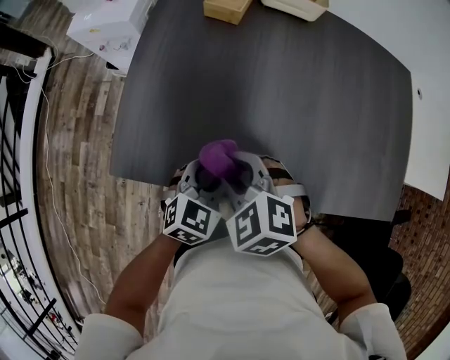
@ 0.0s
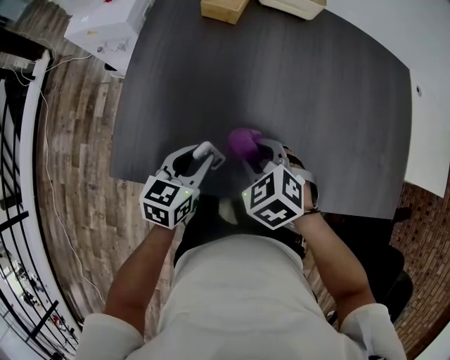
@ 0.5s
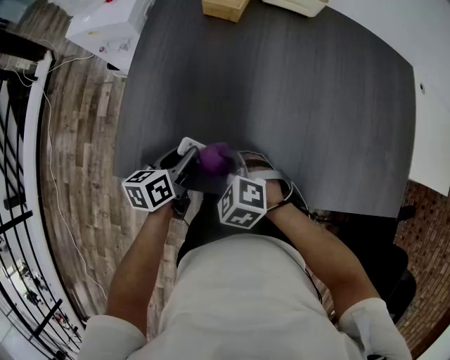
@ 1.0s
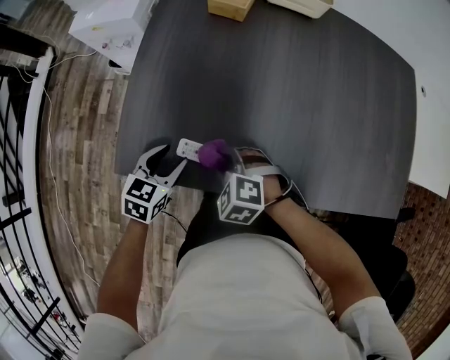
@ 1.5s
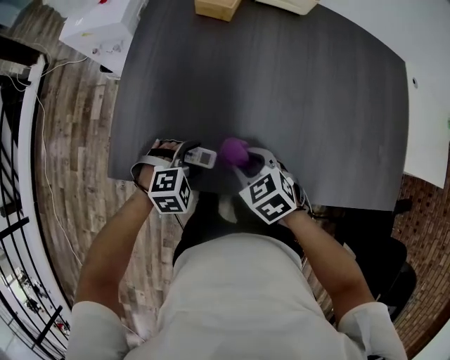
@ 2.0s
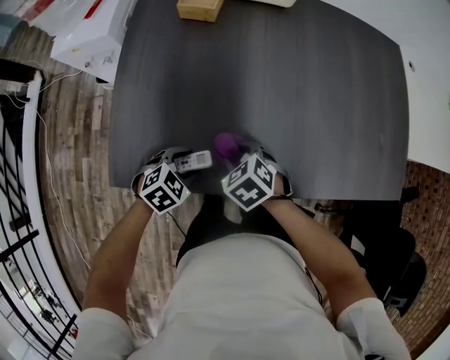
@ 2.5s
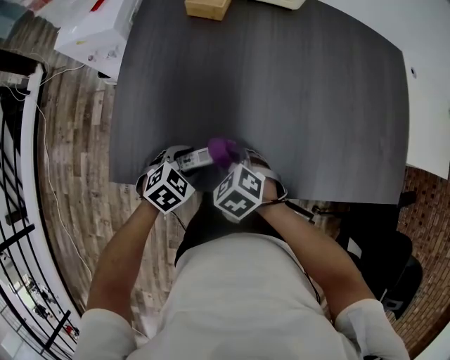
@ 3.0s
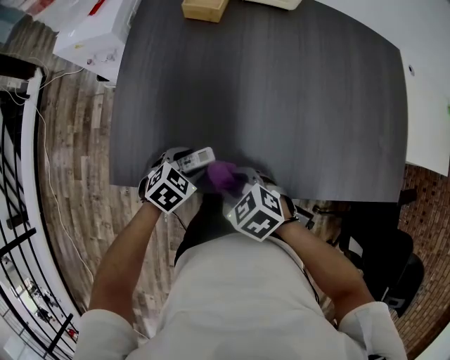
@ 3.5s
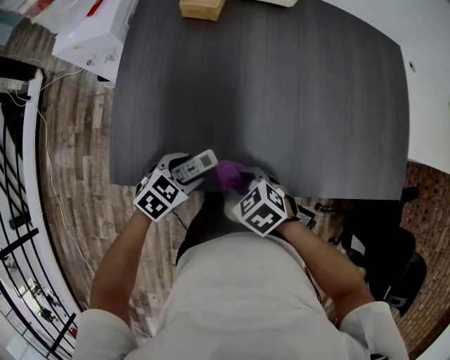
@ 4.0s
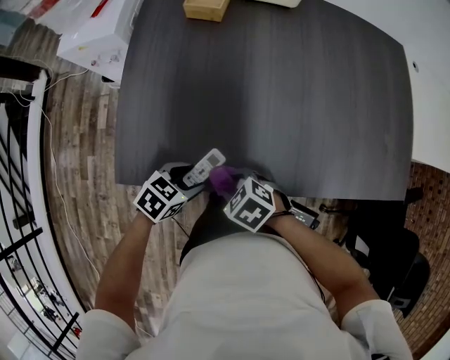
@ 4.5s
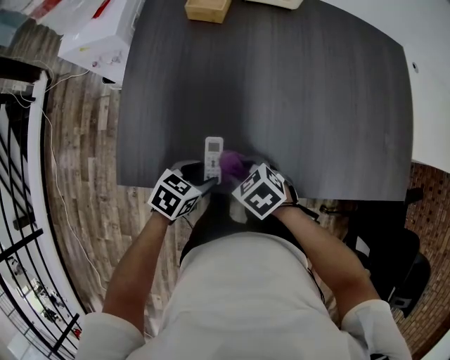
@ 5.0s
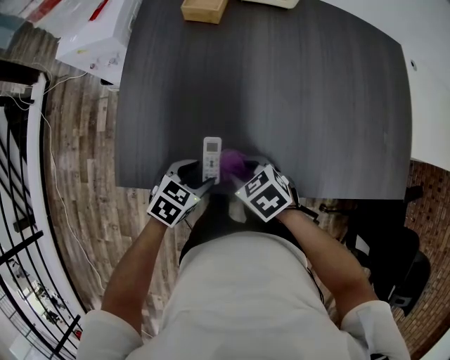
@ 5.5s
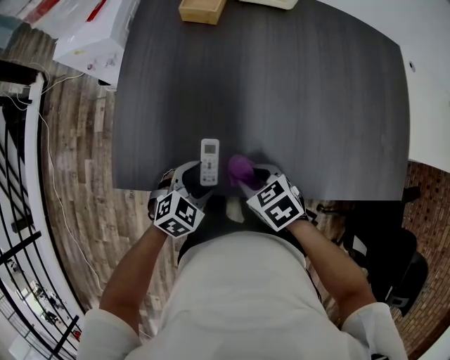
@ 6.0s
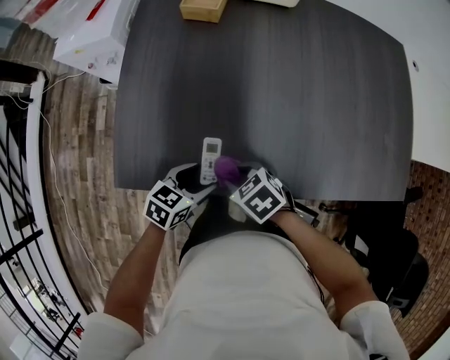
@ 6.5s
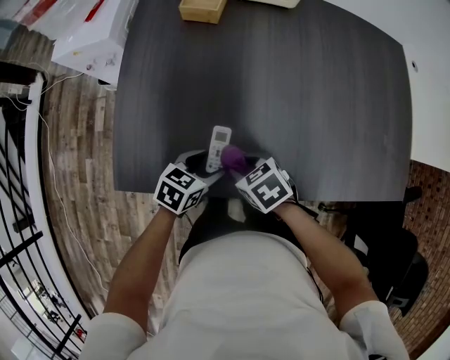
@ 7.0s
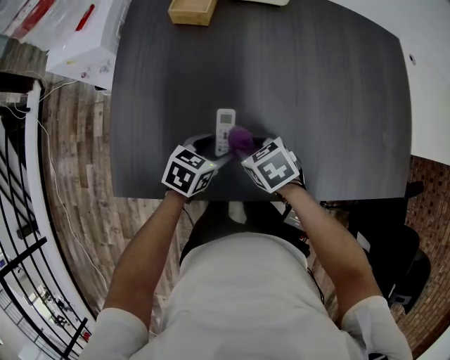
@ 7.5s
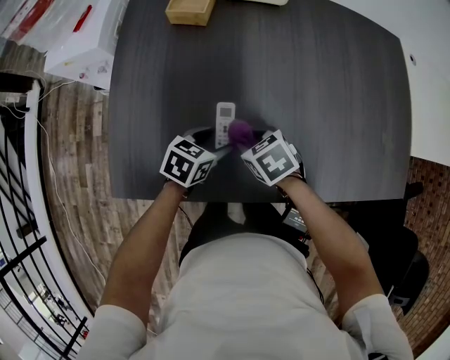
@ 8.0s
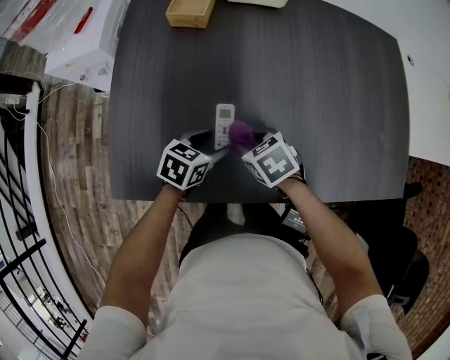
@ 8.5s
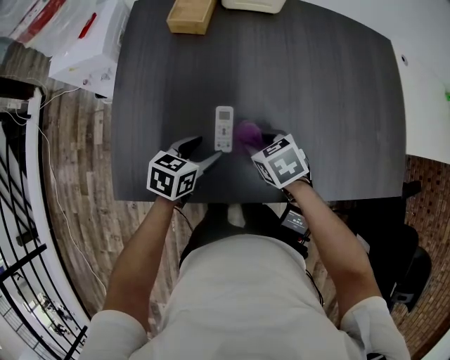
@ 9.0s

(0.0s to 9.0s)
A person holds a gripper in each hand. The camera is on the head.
0.0s - 2.0s: The right gripper moves downward, some 10 cm, and changes its angle by roughly 20 degrees. The left gripper heads downward and to the left, covering approximately 10 cm, changes its angle by some 50 degrees, and opens up.
2.0s - 4.5s: The right gripper shifts by approximately 10 cm; the left gripper twists approximately 40 degrees counterclockwise, seen from behind.
4.5s - 7.0s: The left gripper changes place by roughly 10 cm. The right gripper shifts by roughly 10 cm.
7.0s - 9.0s: The right gripper moves approximately 10 cm. The left gripper ends up some 5 cm from where it was.

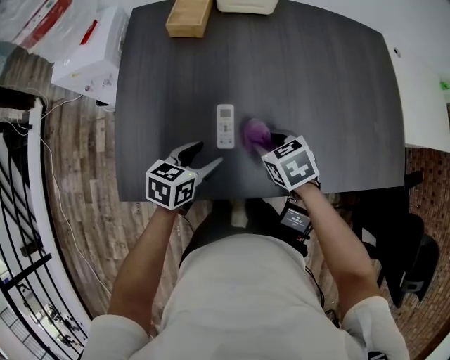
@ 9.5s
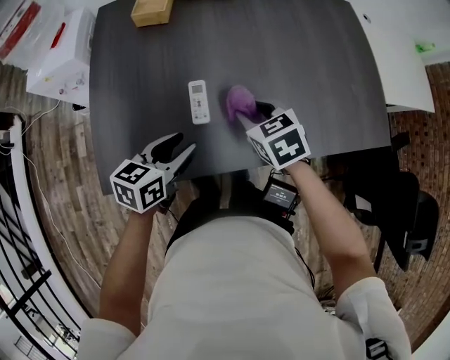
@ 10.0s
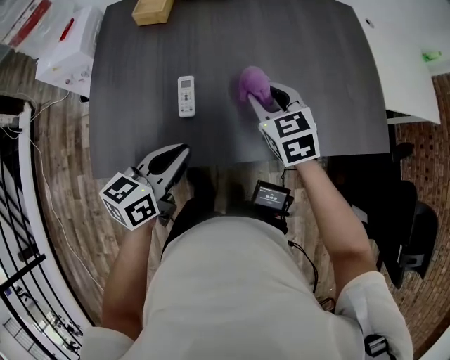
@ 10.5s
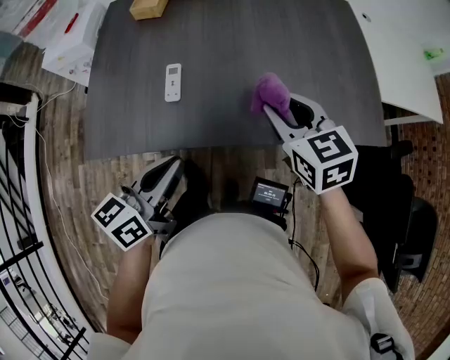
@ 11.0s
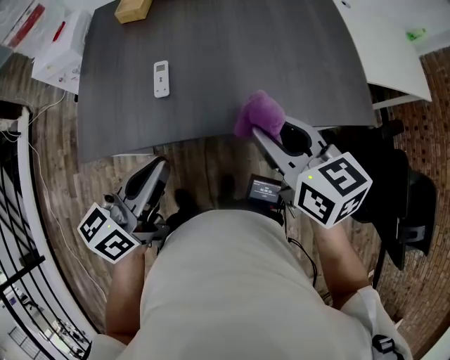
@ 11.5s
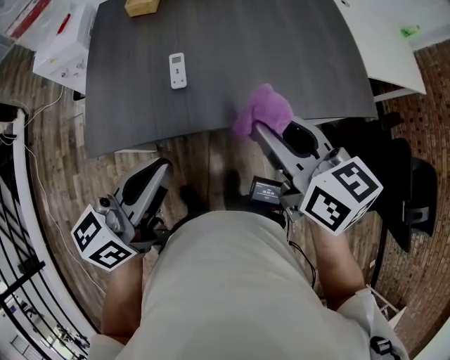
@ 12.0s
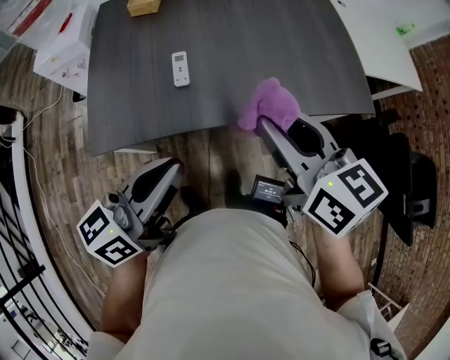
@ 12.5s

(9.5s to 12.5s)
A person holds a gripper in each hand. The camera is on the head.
9.5s - 11.0s: The right gripper is displaced to the right and upward by roughly 20 cm, and swivels some 30 degrees; the left gripper is displaced backward, upward and to the right by some 25 cm, turns by approximately 30 degrees, and closes.
11.0s - 12.5s: The right gripper shifts roughly 20 cm backward, upward and to the left, and swivels some 20 degrees. The left gripper travels upward, backward and to the left by about 10 cm.

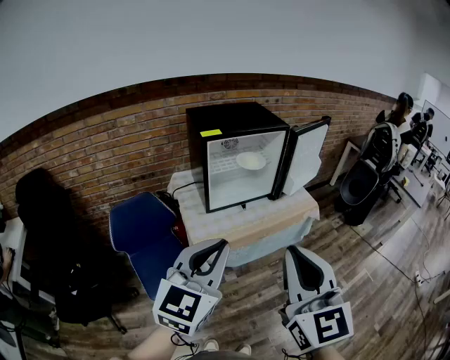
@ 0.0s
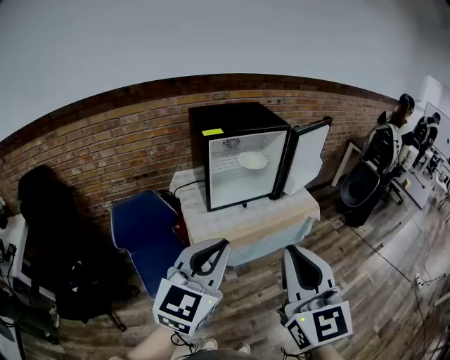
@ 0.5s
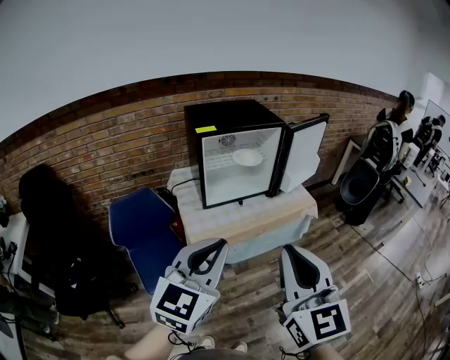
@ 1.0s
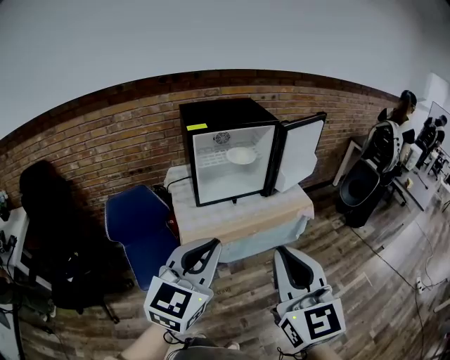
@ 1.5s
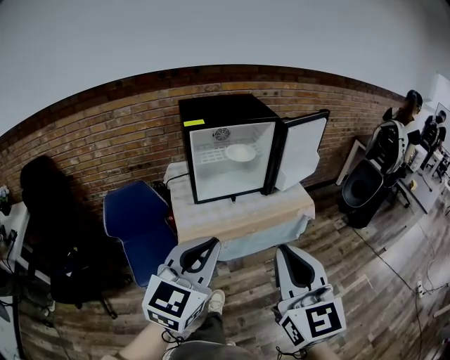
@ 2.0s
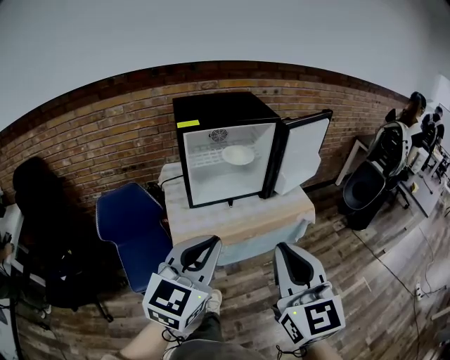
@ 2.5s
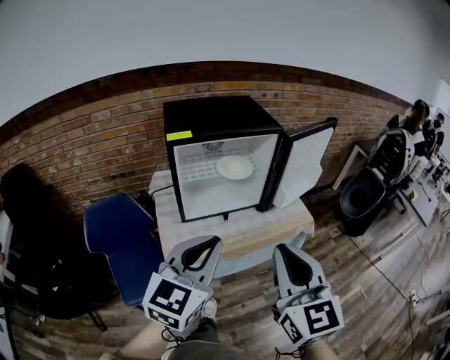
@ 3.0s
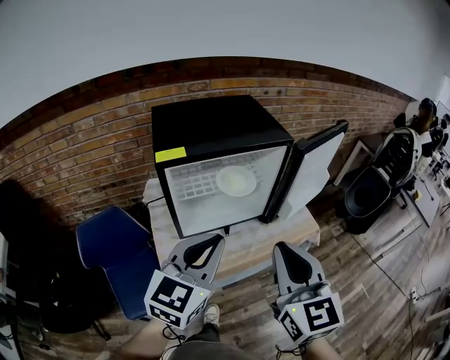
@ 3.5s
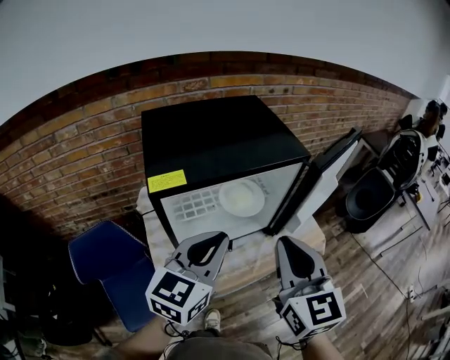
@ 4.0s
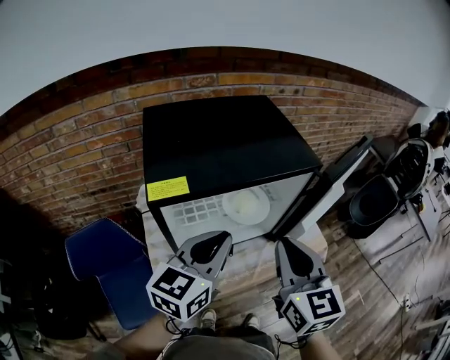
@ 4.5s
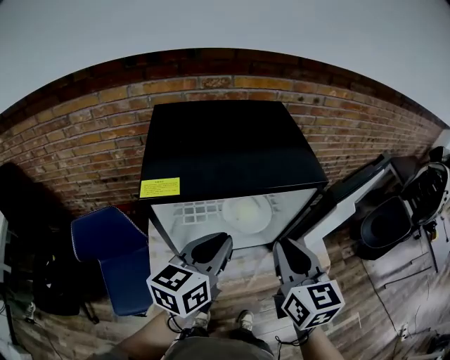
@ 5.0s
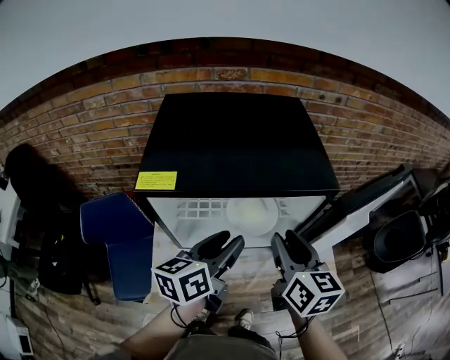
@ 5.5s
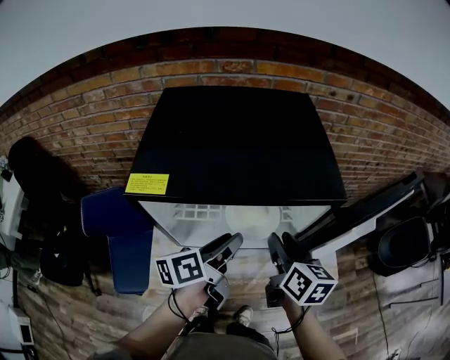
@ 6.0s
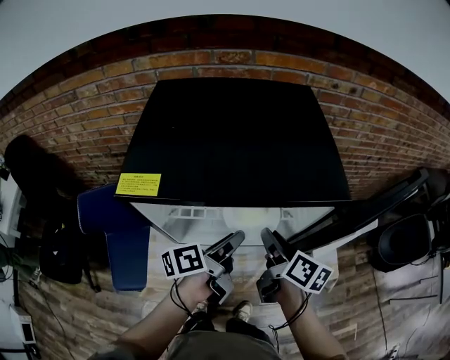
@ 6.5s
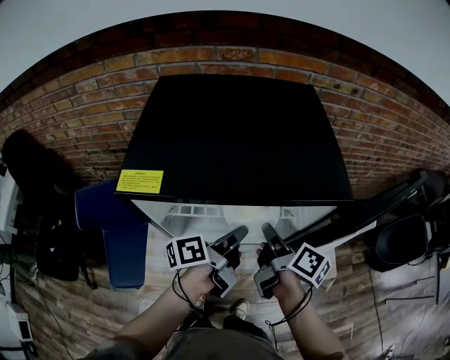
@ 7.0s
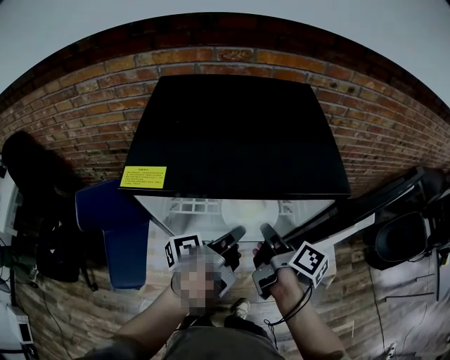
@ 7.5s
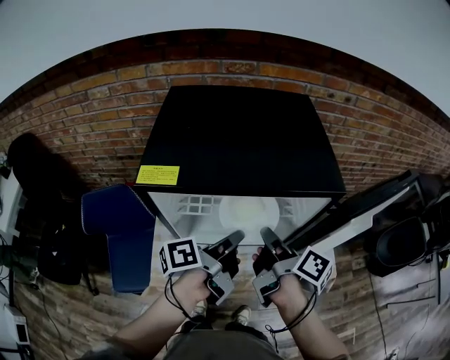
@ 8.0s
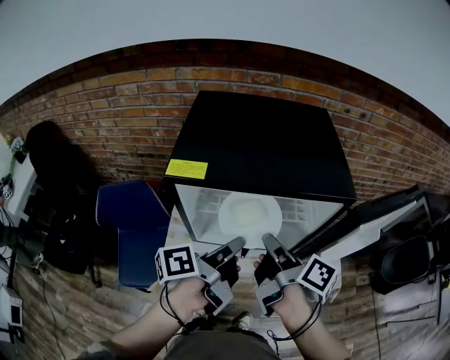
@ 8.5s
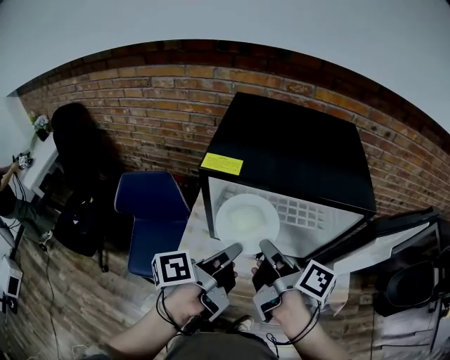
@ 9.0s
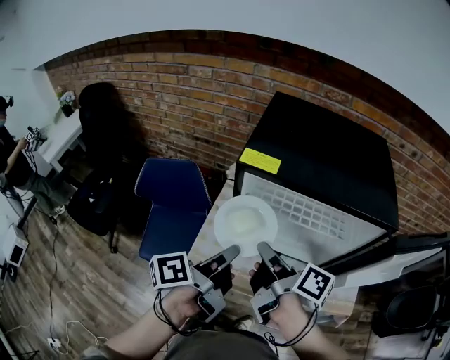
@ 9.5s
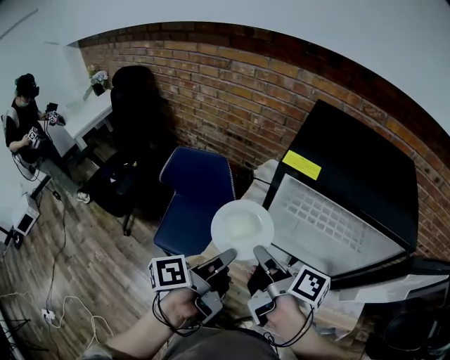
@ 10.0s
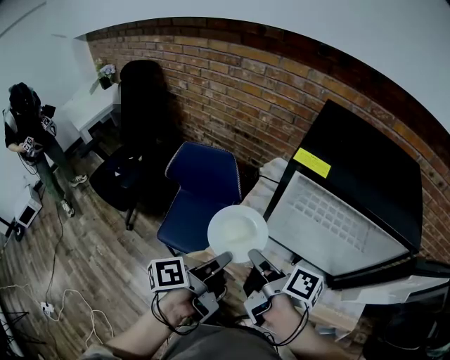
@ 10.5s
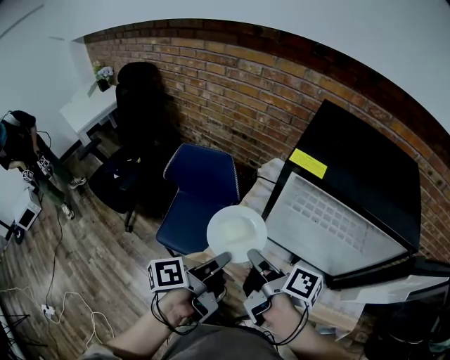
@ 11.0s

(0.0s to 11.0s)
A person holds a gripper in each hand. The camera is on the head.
0.0s - 2.0s: Both grippers travel together to the right, some 10 cm.
2.0s - 3.5s: The two grippers go some 25 cm forward.
3.5s - 5.5s: The right gripper is displaced forward by approximately 25 cm, rotates some 30 degrees, and opens its fingers. The left gripper heads forward and downward, covering some 20 cm, twists roughly 40 degrees counterclockwise, seen from behind, and opens its fingers.
5.5s - 7.5s: Both grippers move downward, some 10 cm. The right gripper twists about 60 degrees clockwise, seen from behind, and closes, while the left gripper rolls counterclockwise, seen from behind, by some 40 degrees, and closes its fingers.
7.5s - 9.0s: The left gripper shifts approximately 15 cm backward, to the left and upward. The right gripper travels to the left, upward and backward by roughly 15 cm.
9.0s - 11.0s: Both grippers move to the left and downward, about 15 cm. The right gripper turns by roughly 20 degrees.

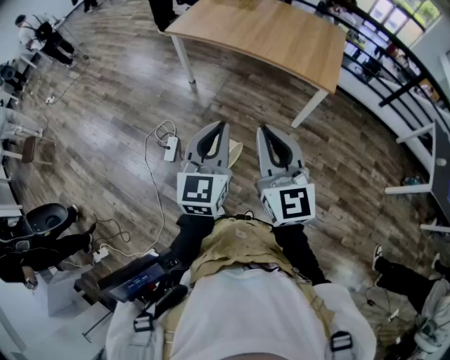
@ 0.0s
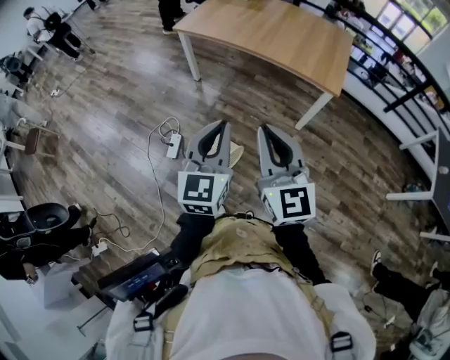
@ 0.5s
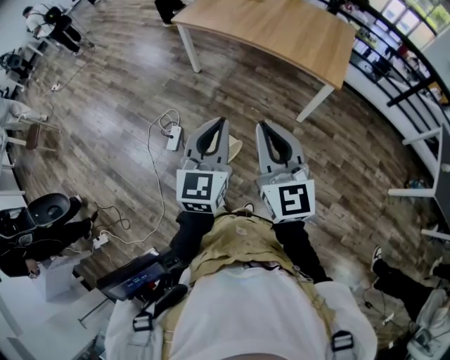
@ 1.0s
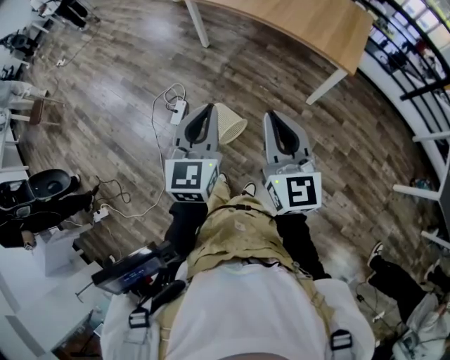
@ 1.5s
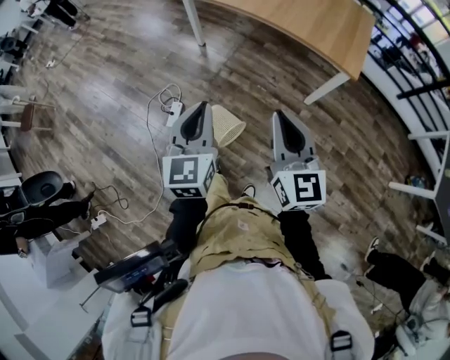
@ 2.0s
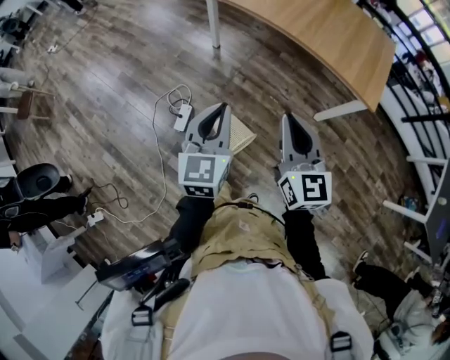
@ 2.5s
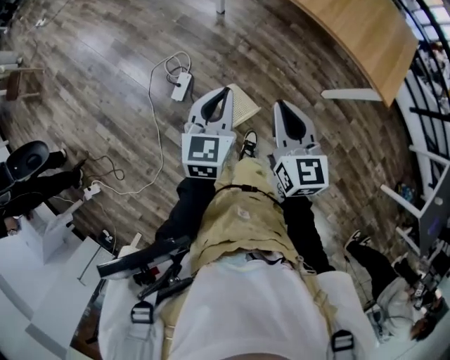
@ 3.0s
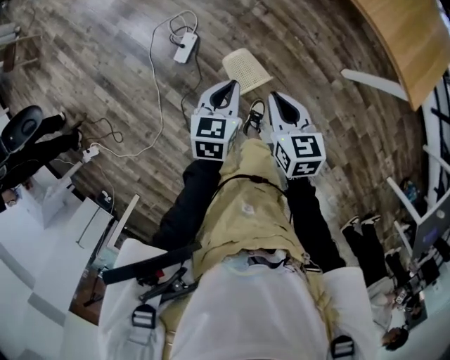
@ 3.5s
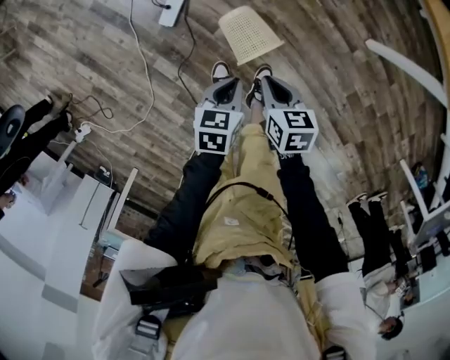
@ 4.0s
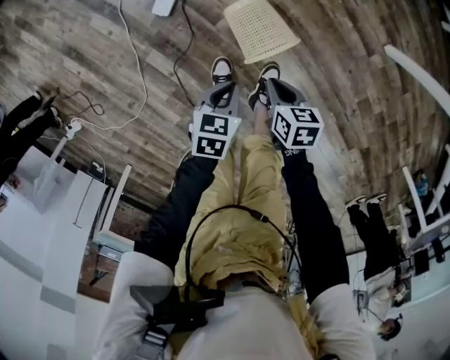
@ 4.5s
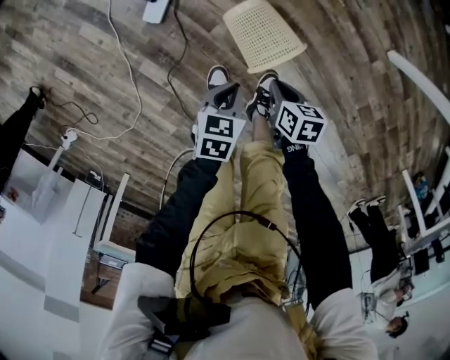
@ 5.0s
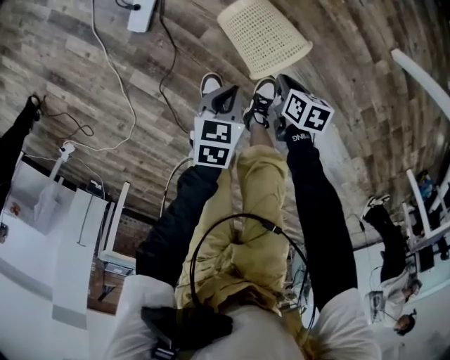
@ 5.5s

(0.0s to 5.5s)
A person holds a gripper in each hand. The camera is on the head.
0.0s - 2.0s: The left gripper is displaced to the left and downward by roughly 10 cm. Meanwhile the right gripper travels downward and forward by approximately 10 cm.
2.0s - 3.5s: The left gripper goes about 30 cm downward and forward, and tips its fingers downward by about 30 degrees. Meanwhile the right gripper heads downward, forward and to the left, covering some 35 cm, and tips its fingers downward by approximately 30 degrees.
3.5s - 5.5s: Both grippers travel together downward, roughly 50 cm. The right gripper rotates roughly 40 degrees. The left gripper swivels roughly 30 degrees.
